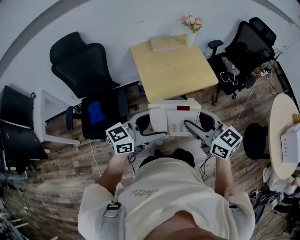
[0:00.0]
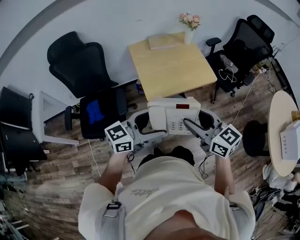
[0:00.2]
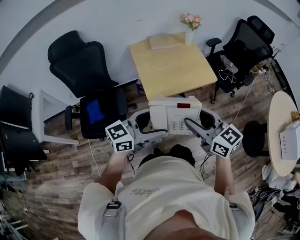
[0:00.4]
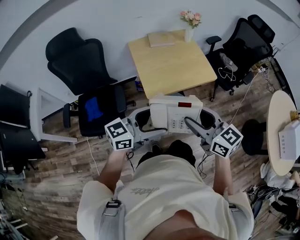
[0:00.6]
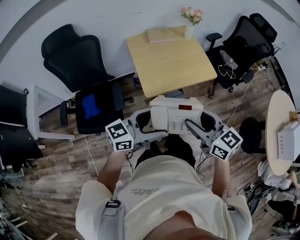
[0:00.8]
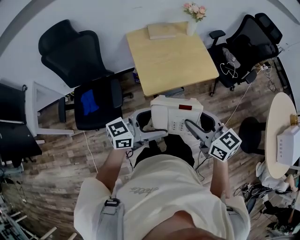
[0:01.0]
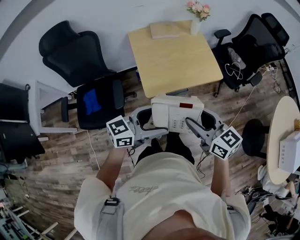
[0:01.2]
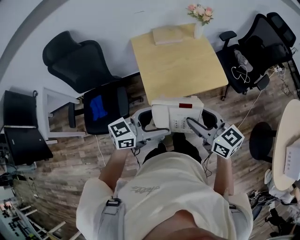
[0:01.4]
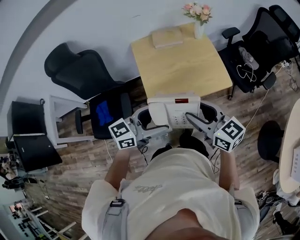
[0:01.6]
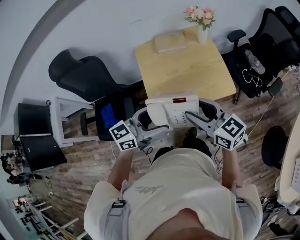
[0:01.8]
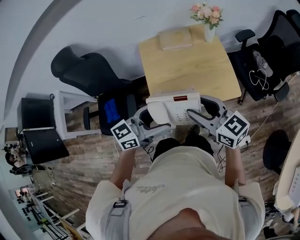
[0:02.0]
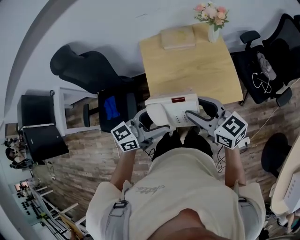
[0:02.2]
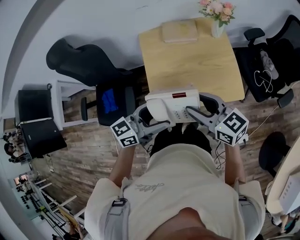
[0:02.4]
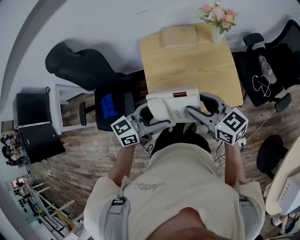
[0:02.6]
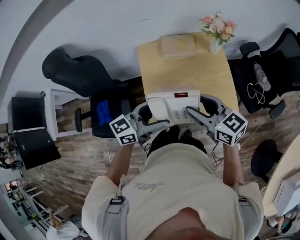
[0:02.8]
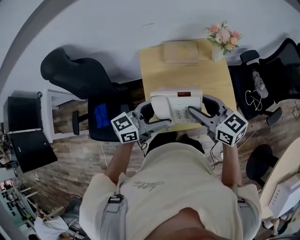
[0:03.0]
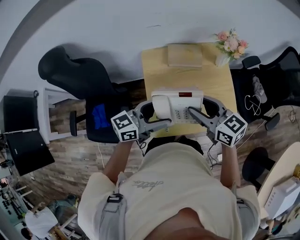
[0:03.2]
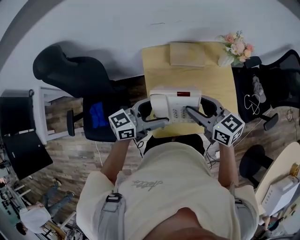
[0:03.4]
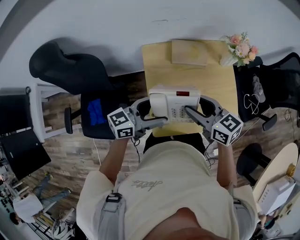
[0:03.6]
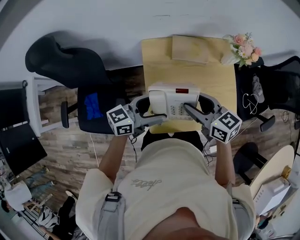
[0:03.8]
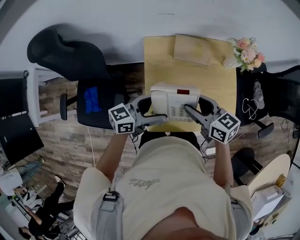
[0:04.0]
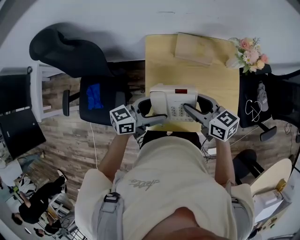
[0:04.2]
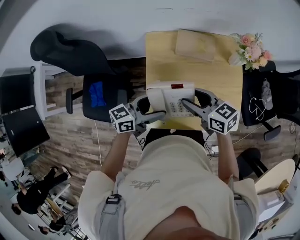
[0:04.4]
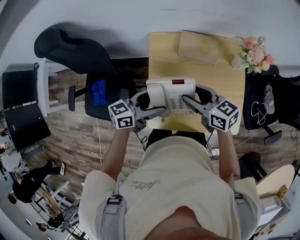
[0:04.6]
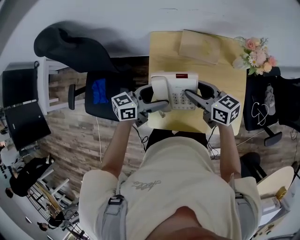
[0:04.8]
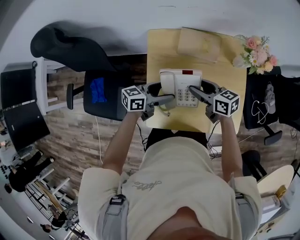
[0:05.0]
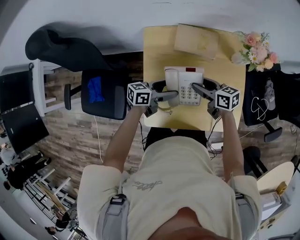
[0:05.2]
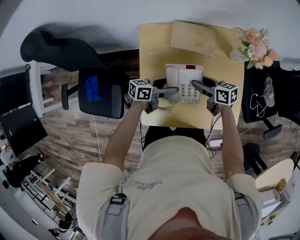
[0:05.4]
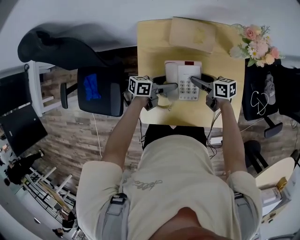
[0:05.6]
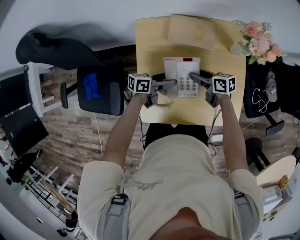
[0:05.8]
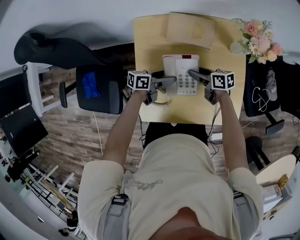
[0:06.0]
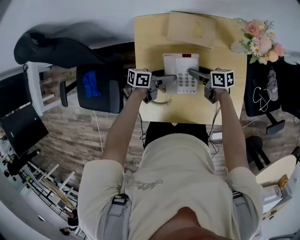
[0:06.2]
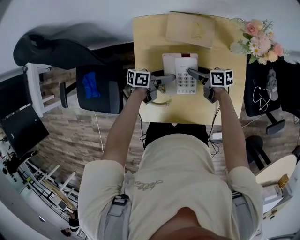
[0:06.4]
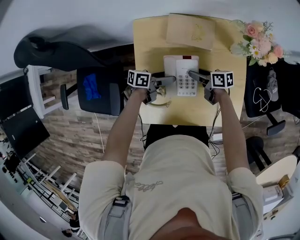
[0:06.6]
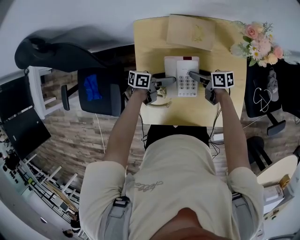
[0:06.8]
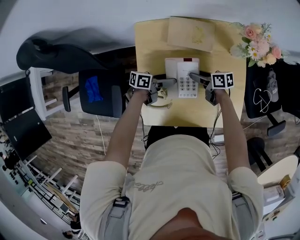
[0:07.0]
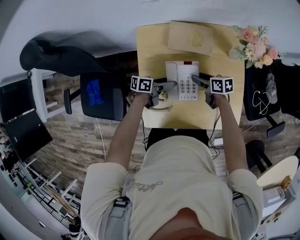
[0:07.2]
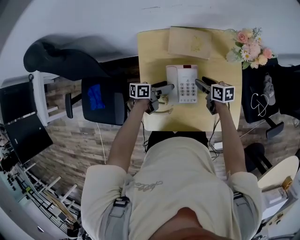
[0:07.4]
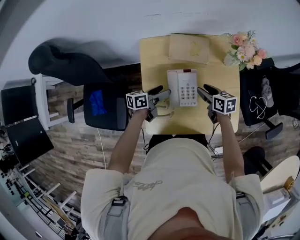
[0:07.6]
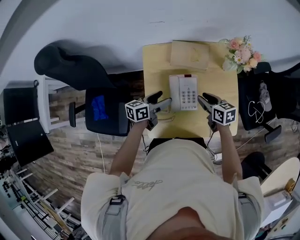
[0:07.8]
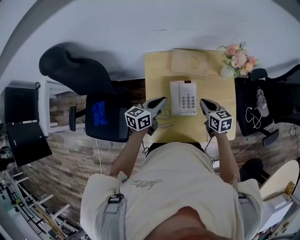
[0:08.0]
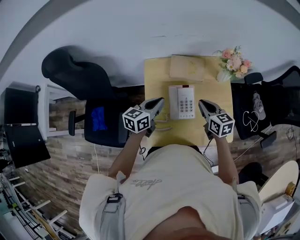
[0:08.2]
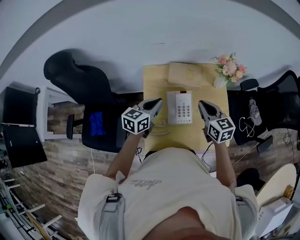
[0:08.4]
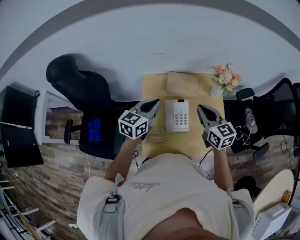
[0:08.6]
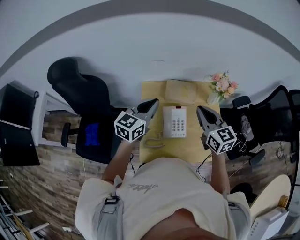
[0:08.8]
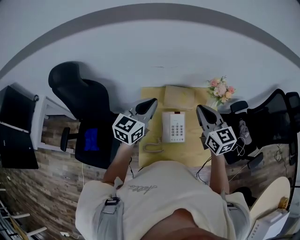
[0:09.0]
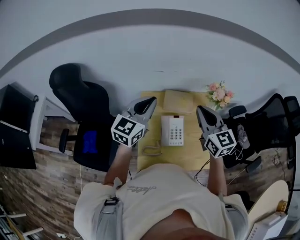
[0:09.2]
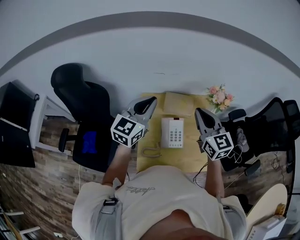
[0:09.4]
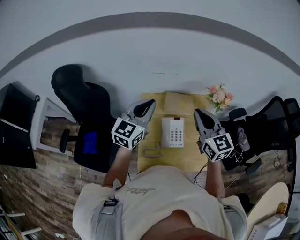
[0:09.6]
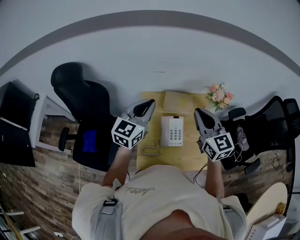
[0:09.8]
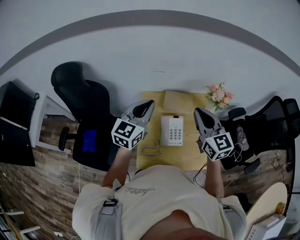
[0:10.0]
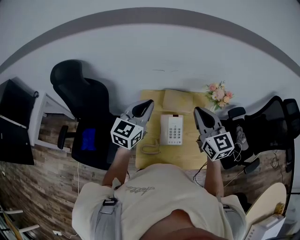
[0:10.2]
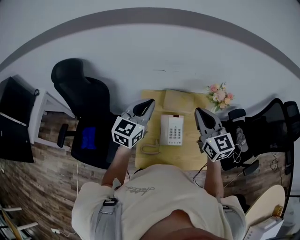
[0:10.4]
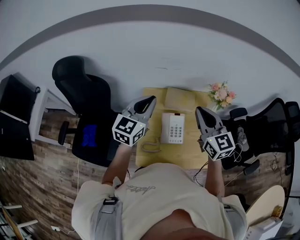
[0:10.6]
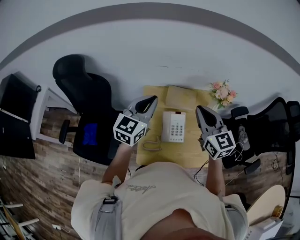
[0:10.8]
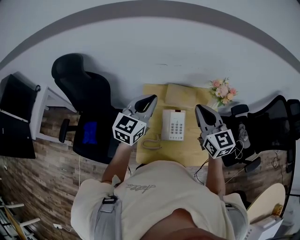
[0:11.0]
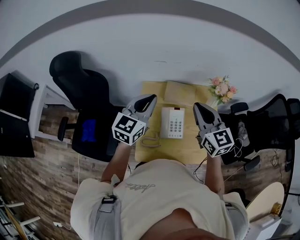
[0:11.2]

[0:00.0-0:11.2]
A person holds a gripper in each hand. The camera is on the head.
0:00.0 to 0:01.6: The two grippers go approximately 20 cm forward.
0:01.6 to 0:03.2: The two grippers go approximately 25 cm forward.
0:03.2 to 0:04.8: The two grippers go roughly 15 cm downward and forward.
0:04.8 to 0:06.4: Both grippers travel together downward, about 20 cm. The left gripper turns by about 30 degrees. Meanwhile the right gripper rotates some 30 degrees.
0:06.4 to 0:08.0: The grippers both shift upward by approximately 15 cm. The left gripper changes its angle by about 40 degrees, and closes its fingers. The right gripper swivels some 40 degrees, and closes up.
0:08.0 to 0:09.6: The grippers both shift upward by approximately 30 cm. The left gripper swivels about 40 degrees, while the right gripper tilts its fingers approximately 30 degrees upward.
0:09.6 to 0:11.2: The grippers move only a little.

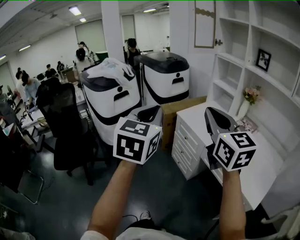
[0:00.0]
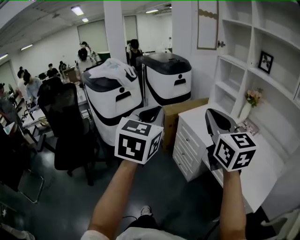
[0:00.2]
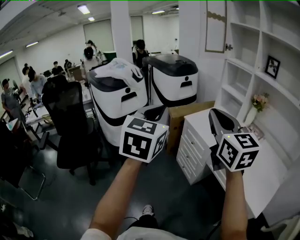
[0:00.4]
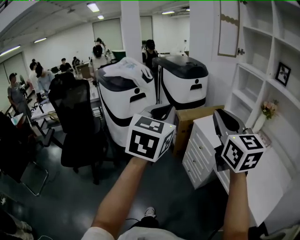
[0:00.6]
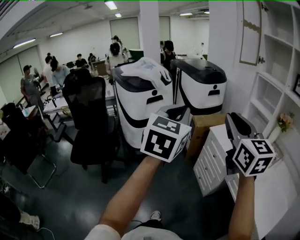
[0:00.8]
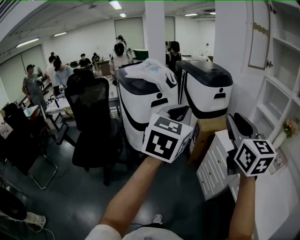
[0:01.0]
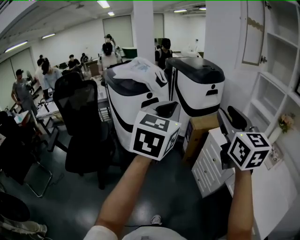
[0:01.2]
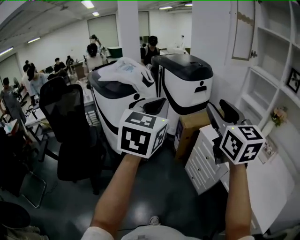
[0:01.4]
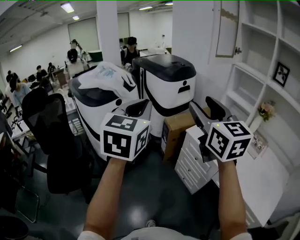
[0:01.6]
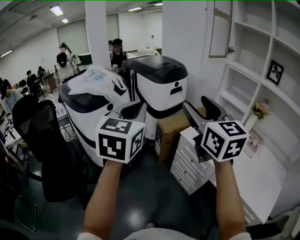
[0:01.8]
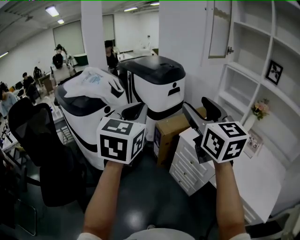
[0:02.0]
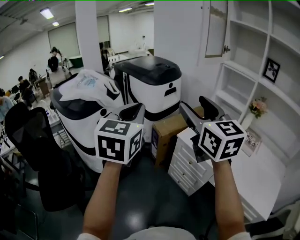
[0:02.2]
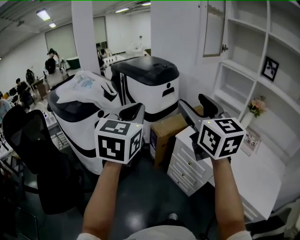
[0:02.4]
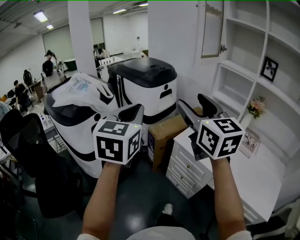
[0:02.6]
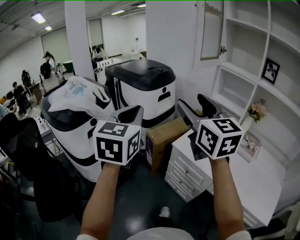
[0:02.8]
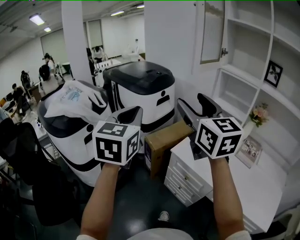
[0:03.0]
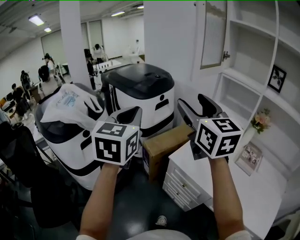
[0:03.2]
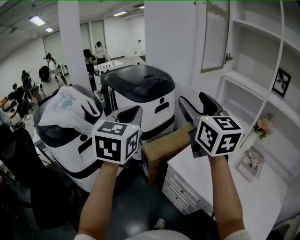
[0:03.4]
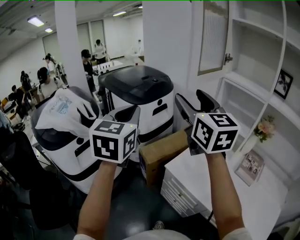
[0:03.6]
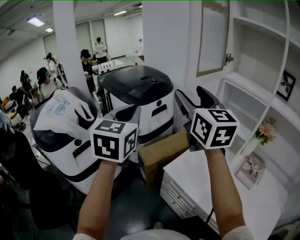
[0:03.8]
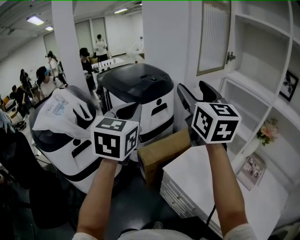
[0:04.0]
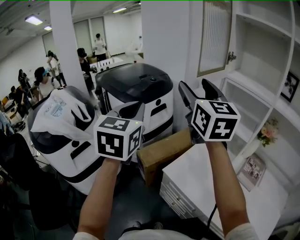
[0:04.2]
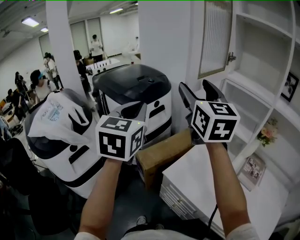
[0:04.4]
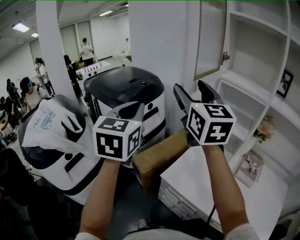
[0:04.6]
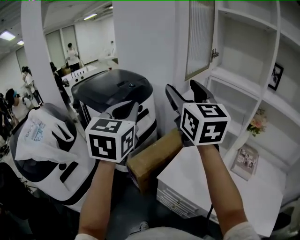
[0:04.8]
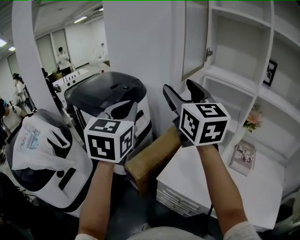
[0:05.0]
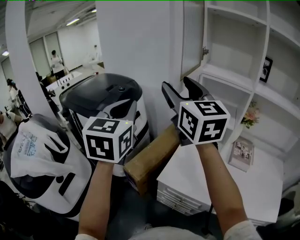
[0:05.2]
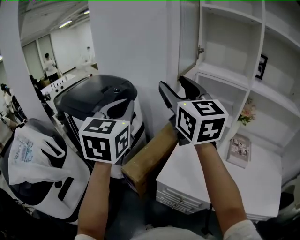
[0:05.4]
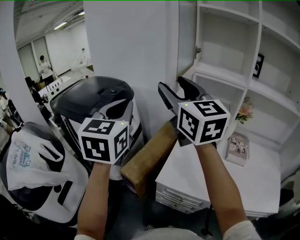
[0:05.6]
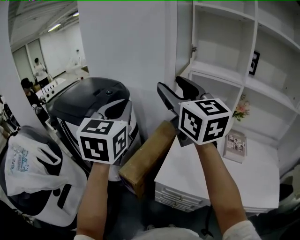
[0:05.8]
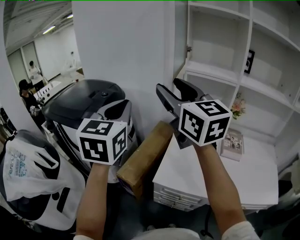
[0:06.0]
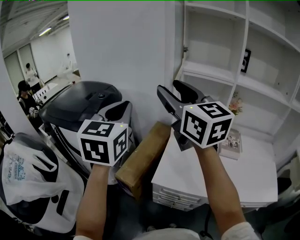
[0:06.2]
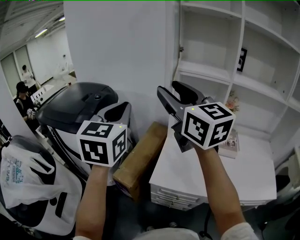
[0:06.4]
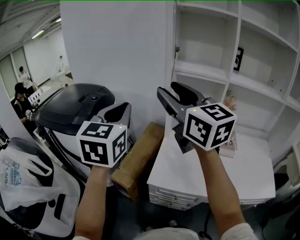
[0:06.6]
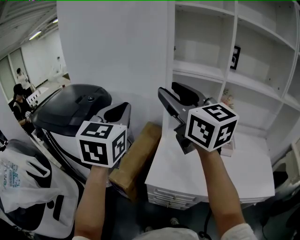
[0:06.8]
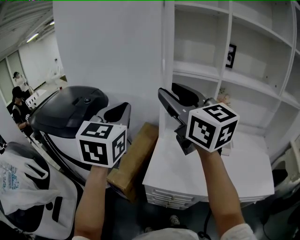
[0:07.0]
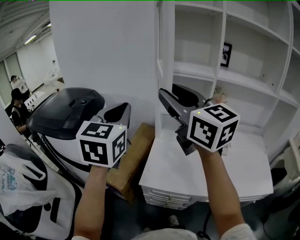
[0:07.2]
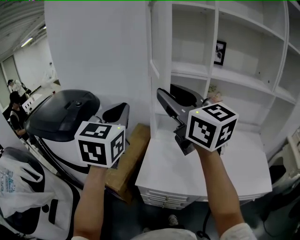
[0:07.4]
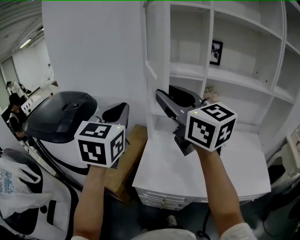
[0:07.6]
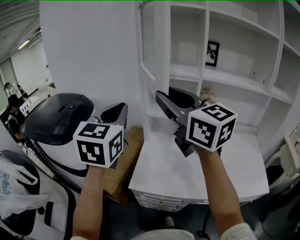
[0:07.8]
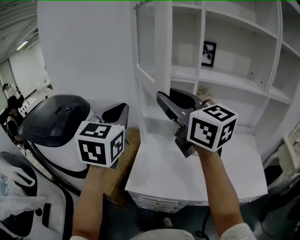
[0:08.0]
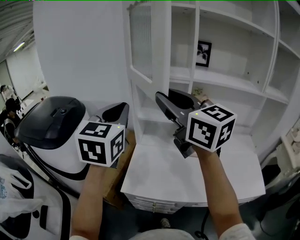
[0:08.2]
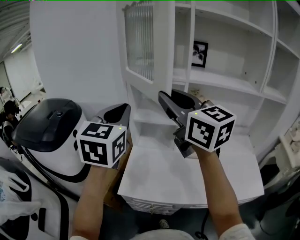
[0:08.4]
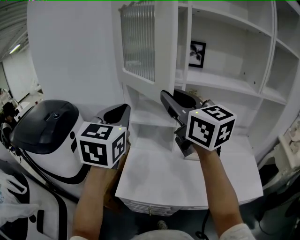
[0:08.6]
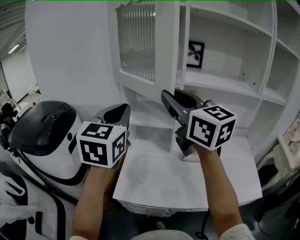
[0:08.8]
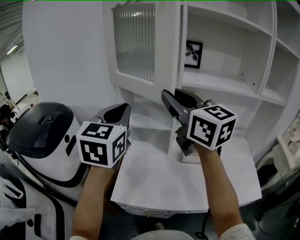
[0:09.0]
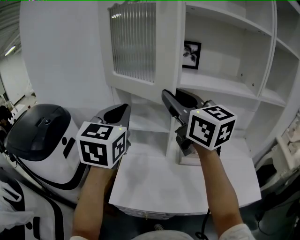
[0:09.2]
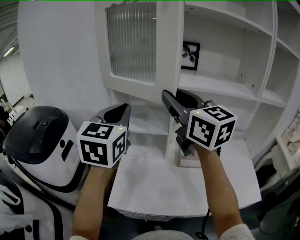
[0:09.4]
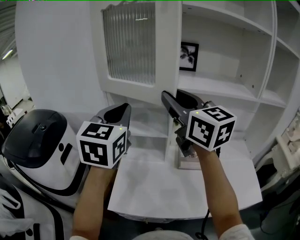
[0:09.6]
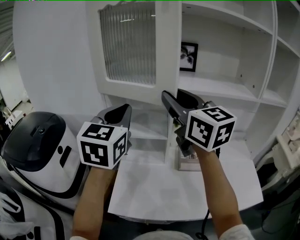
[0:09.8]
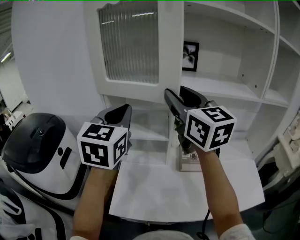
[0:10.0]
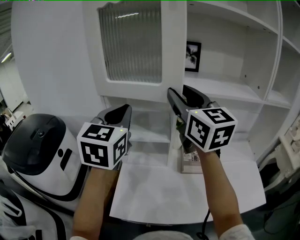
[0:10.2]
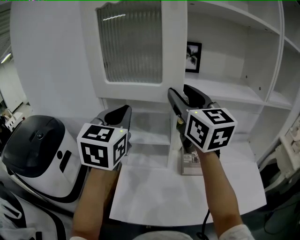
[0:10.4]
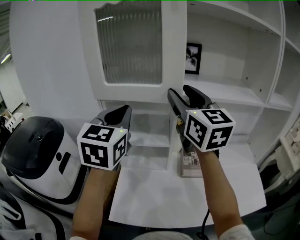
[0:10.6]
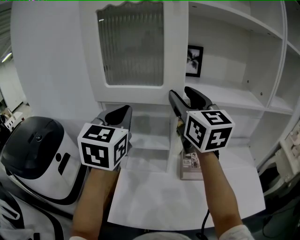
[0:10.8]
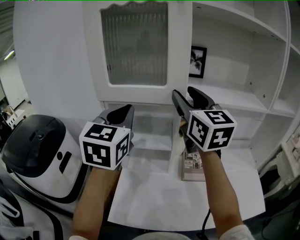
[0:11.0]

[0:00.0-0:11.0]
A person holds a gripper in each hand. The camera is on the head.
0:00.0 to 0:01.6: Both grippers travel together forward and to the left, about 25 cm. The right gripper opens its fingers.
0:01.6 to 0:03.2: The two grippers go approximately 20 cm forward.
0:03.2 to 0:04.8: The left gripper shifts some 20 cm forward and to the right. Meanwhile the right gripper heads forward, covering about 15 cm.
0:04.8 to 0:06.2: The left gripper changes place by approximately 5 cm.
0:06.2 to 0:07.8: Both grippers travel together to the right, approximately 15 cm.
0:07.8 to 0:09.4: The grippers both shift to the right and forward by some 15 cm.
0:09.4 to 0:11.0: The left gripper is displaced forward by roughly 10 cm; the right gripper moves forward and to the right, some 10 cm, and opens up.

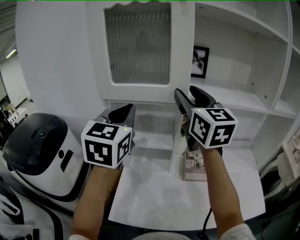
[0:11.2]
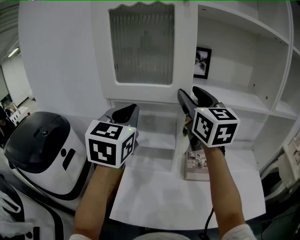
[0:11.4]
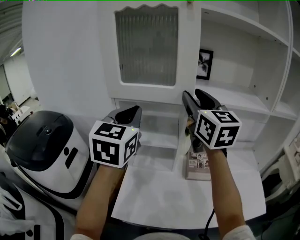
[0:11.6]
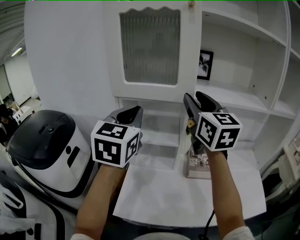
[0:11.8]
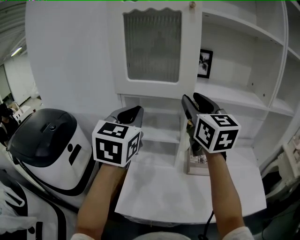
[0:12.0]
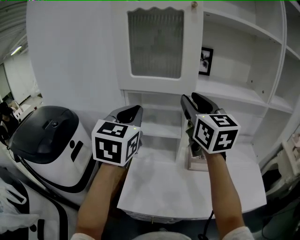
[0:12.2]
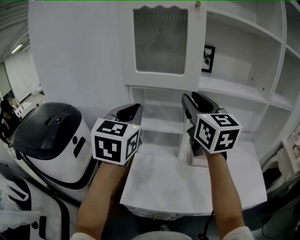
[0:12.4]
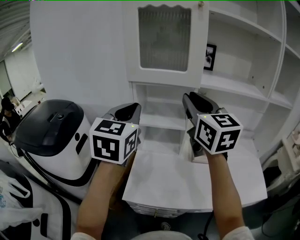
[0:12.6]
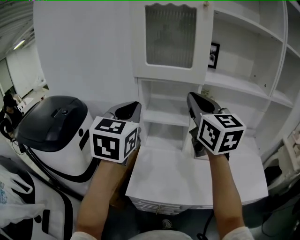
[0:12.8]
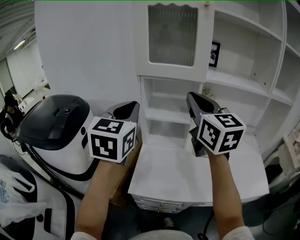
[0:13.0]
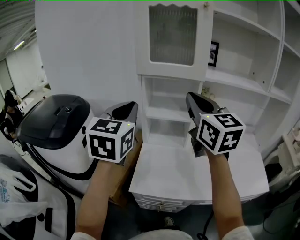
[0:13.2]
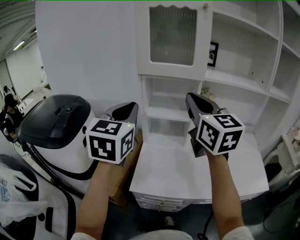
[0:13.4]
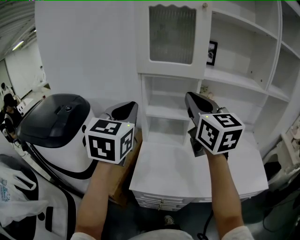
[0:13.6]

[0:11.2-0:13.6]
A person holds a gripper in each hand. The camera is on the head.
0:11.2 to 0:12.4: Both grippers move backward, about 10 cm.
0:12.4 to 0:13.6: Both grippers travel together backward and to the left, some 10 cm. The right gripper closes up.
